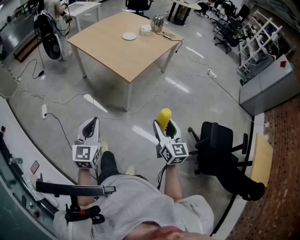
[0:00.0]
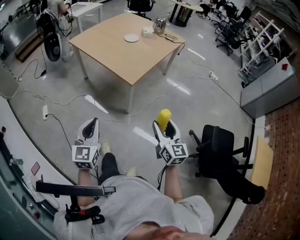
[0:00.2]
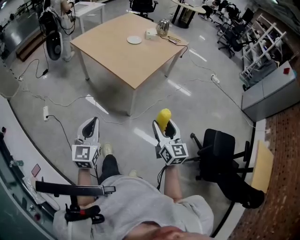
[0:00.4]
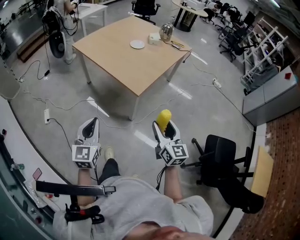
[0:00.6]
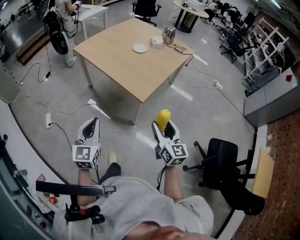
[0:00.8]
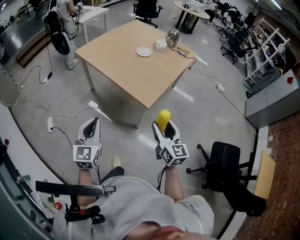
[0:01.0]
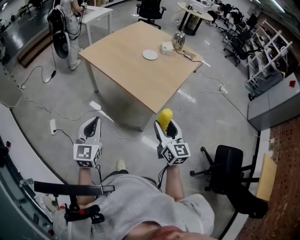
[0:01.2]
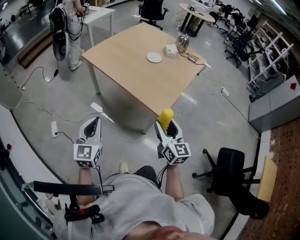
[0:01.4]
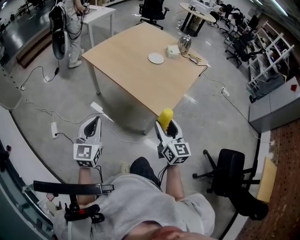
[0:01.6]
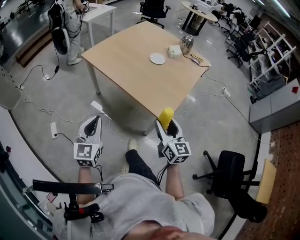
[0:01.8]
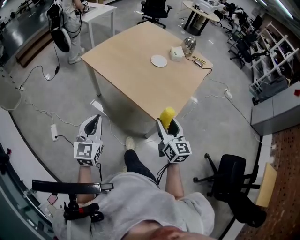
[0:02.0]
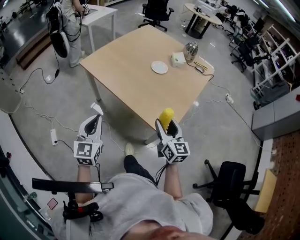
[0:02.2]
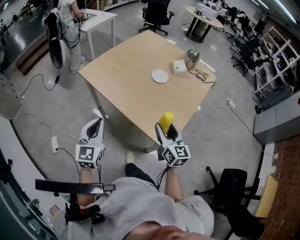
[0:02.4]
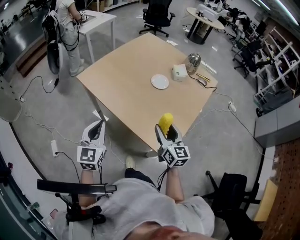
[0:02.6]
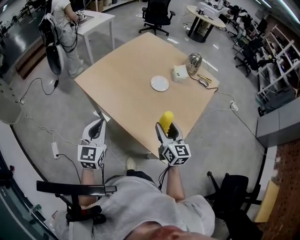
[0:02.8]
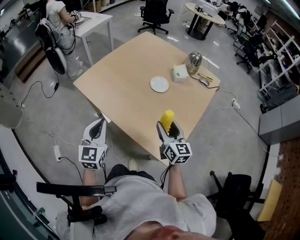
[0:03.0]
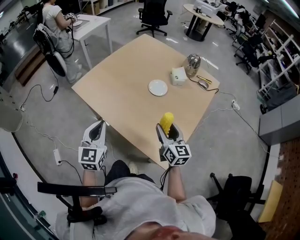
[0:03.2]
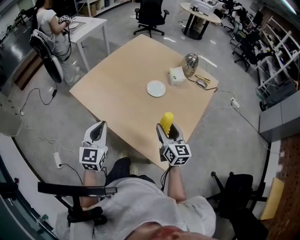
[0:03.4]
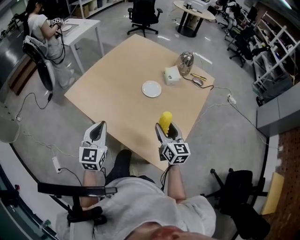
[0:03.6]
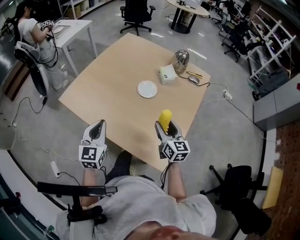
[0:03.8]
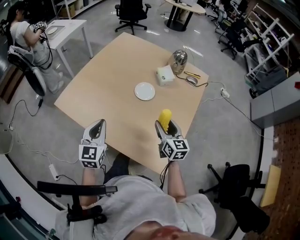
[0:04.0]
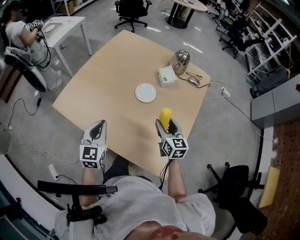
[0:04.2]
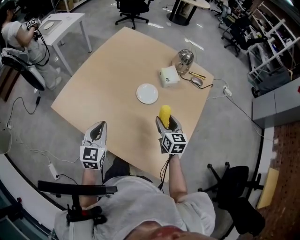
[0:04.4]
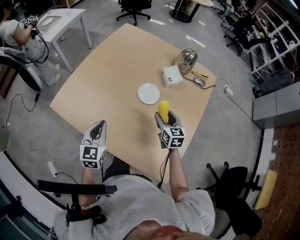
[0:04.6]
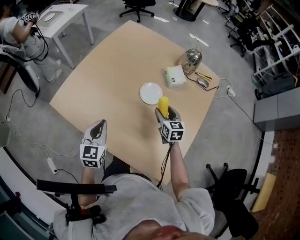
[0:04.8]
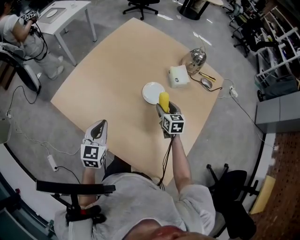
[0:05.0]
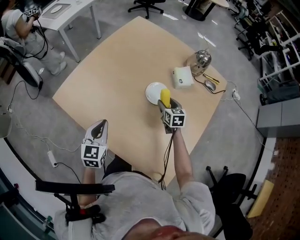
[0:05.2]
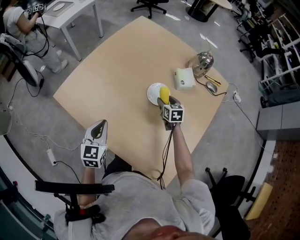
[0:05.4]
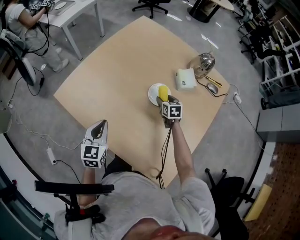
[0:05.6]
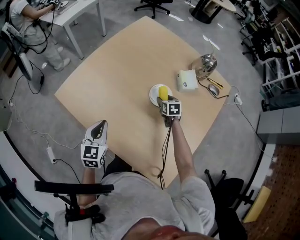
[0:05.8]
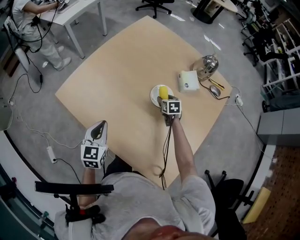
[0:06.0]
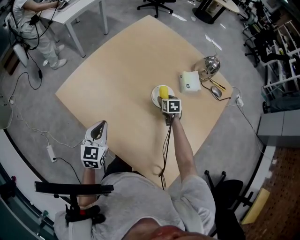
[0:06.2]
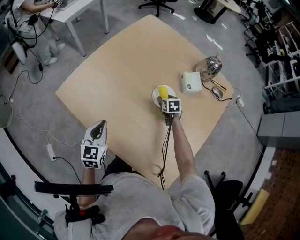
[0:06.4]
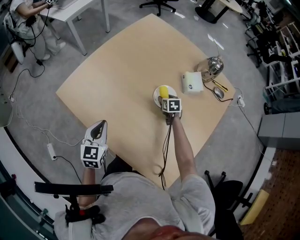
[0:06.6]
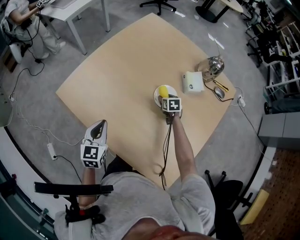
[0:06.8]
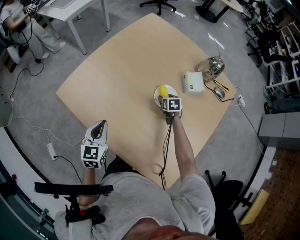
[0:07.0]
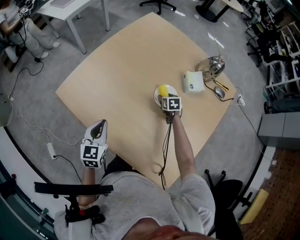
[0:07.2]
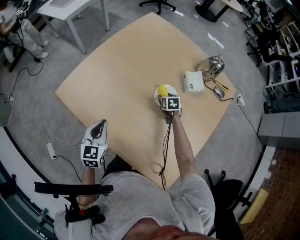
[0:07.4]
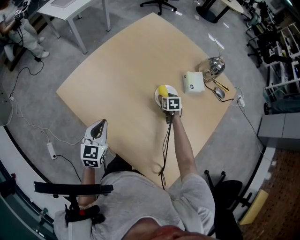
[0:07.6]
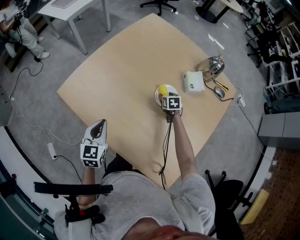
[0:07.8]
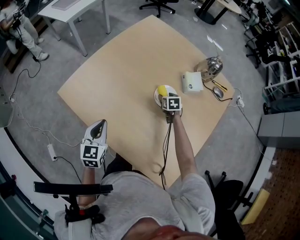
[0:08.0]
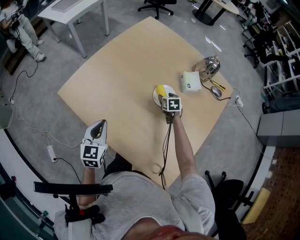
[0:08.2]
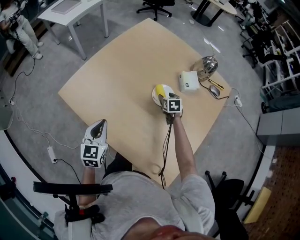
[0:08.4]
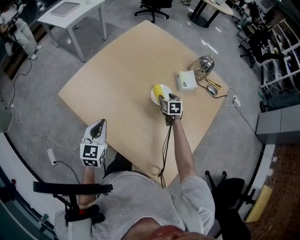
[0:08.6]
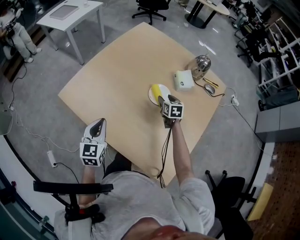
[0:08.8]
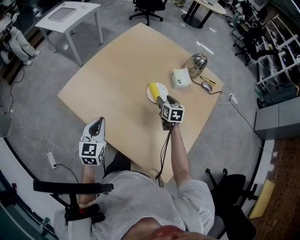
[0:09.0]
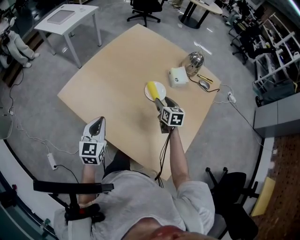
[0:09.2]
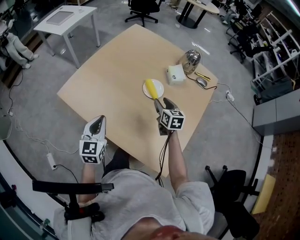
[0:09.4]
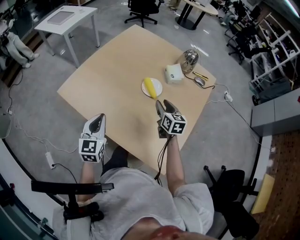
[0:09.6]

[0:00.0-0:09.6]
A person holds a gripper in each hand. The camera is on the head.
0:00.0 to 0:01.6: The grippers both shift forward and to the left by some 40 cm.
0:01.6 to 0:03.2: The grippers both shift forward by about 35 cm.
0:03.2 to 0:04.8: Both grippers move forward and downward, some 25 cm. The right gripper changes its angle by roughly 20 degrees.
0:04.8 to 0:06.4: The left gripper is displaced to the left by approximately 5 cm. Meanwhile the right gripper travels downward and forward by approximately 20 cm, and changes its angle by about 30 degrees.
0:06.4 to 0:08.0: Both grippers stay put.
0:08.0 to 0:09.6: The right gripper travels upward and backward by about 30 cm, and tilts its fingers roughly 30 degrees upward. The left gripper moves backward and upward, roughly 10 cm.

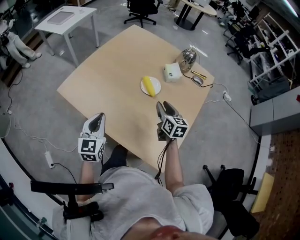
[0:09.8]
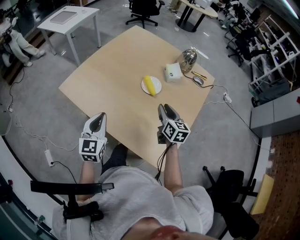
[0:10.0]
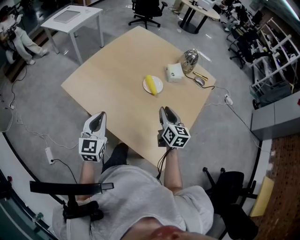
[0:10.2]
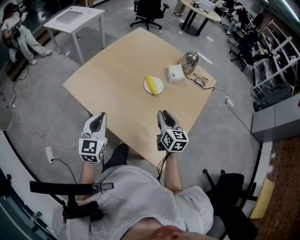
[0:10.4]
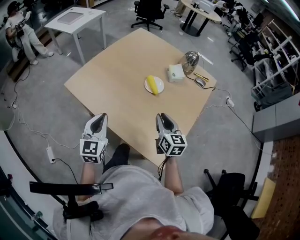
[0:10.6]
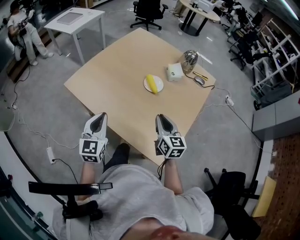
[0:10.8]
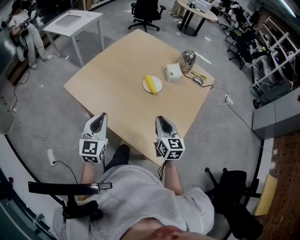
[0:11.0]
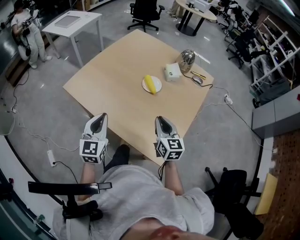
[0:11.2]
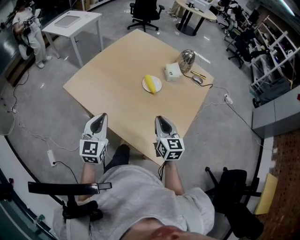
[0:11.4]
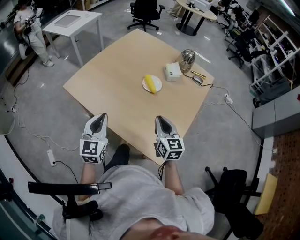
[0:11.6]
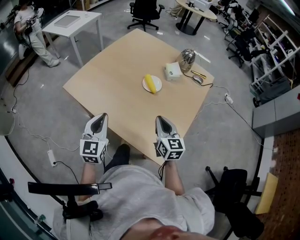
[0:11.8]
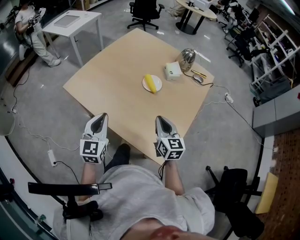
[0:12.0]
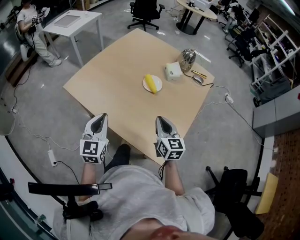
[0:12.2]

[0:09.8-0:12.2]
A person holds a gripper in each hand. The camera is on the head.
0:09.8 to 0:11.0: The right gripper heads backward, covering approximately 15 cm, and closes its fingers, while the left gripper travels backward by approximately 5 cm.
0:11.0 to 0:12.2: Both grippers stay about where they are.

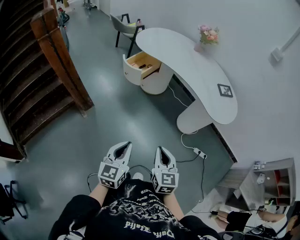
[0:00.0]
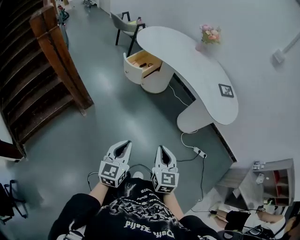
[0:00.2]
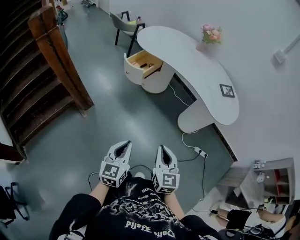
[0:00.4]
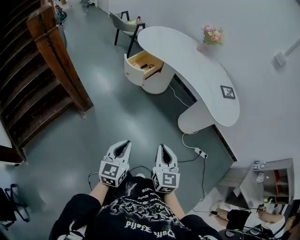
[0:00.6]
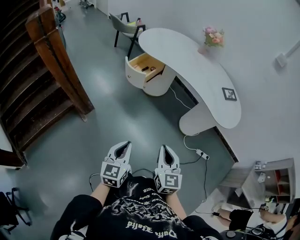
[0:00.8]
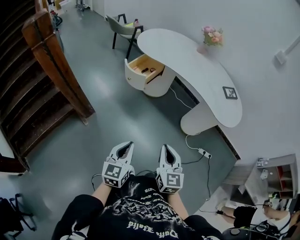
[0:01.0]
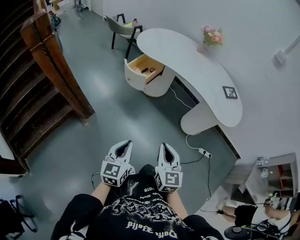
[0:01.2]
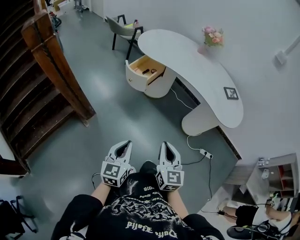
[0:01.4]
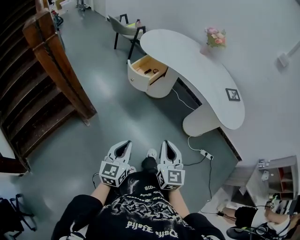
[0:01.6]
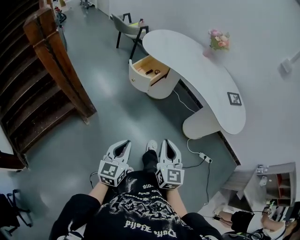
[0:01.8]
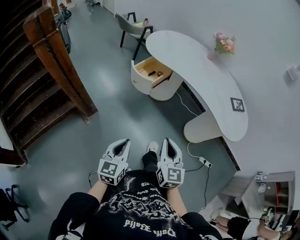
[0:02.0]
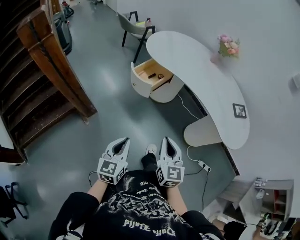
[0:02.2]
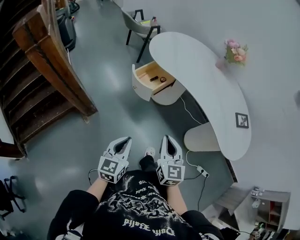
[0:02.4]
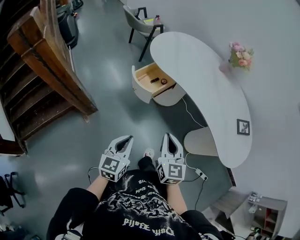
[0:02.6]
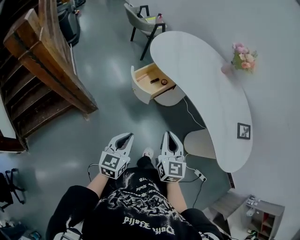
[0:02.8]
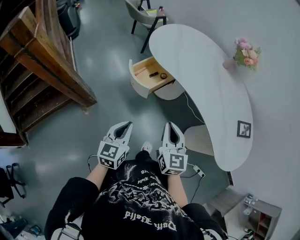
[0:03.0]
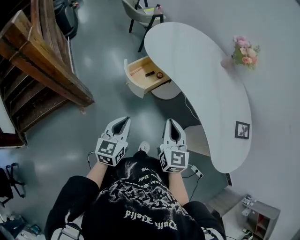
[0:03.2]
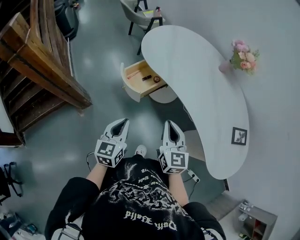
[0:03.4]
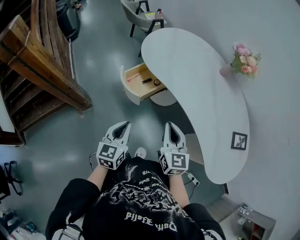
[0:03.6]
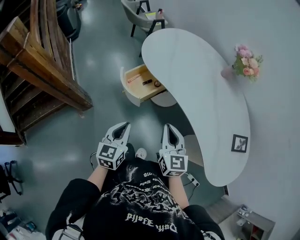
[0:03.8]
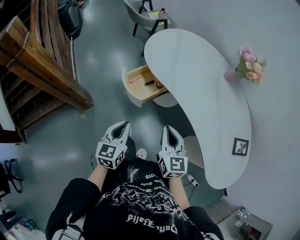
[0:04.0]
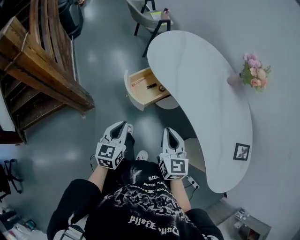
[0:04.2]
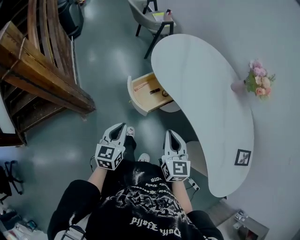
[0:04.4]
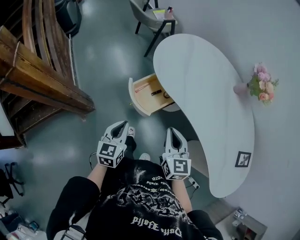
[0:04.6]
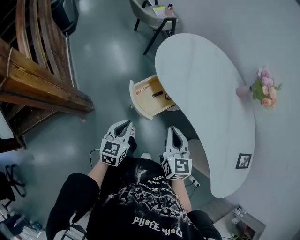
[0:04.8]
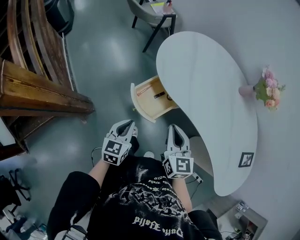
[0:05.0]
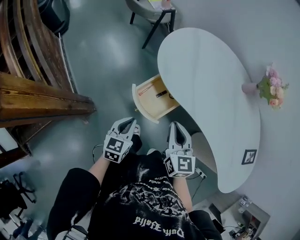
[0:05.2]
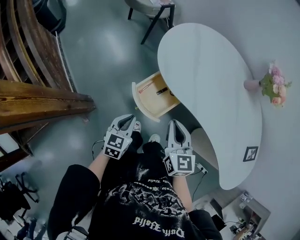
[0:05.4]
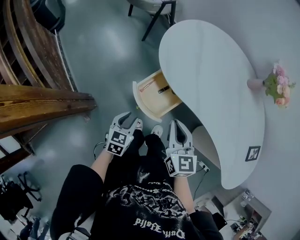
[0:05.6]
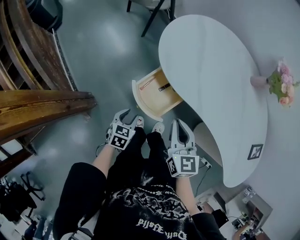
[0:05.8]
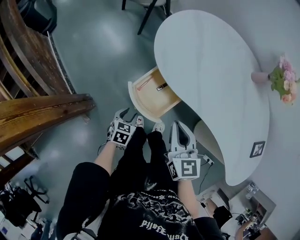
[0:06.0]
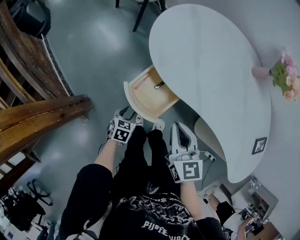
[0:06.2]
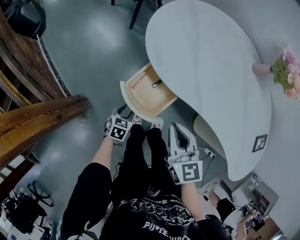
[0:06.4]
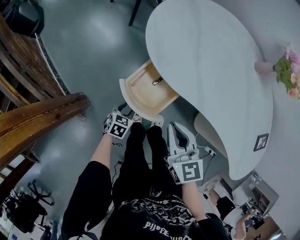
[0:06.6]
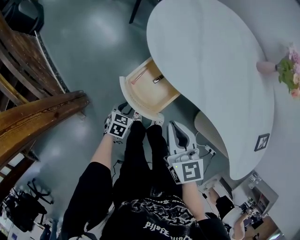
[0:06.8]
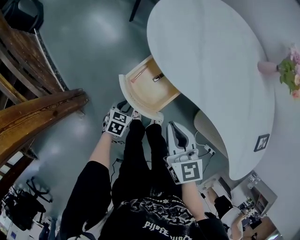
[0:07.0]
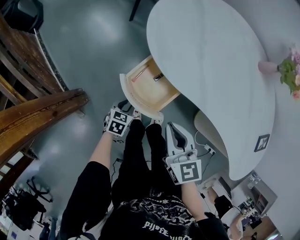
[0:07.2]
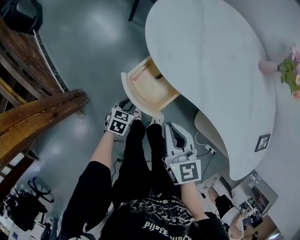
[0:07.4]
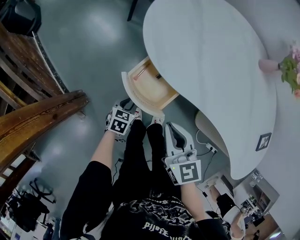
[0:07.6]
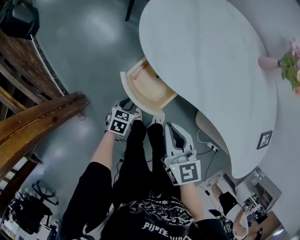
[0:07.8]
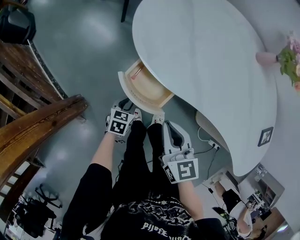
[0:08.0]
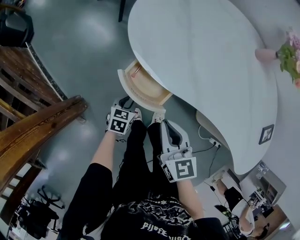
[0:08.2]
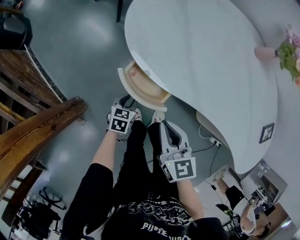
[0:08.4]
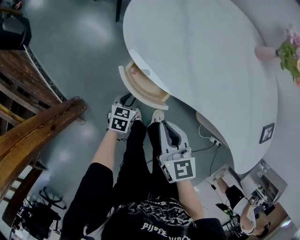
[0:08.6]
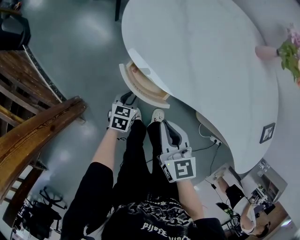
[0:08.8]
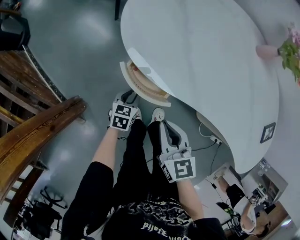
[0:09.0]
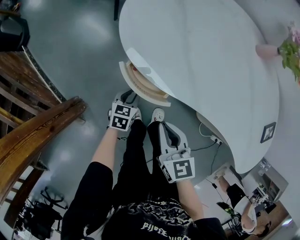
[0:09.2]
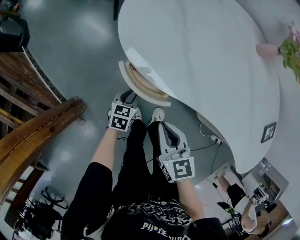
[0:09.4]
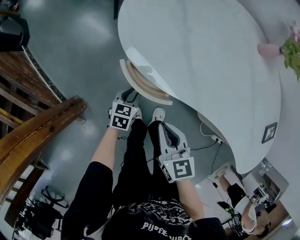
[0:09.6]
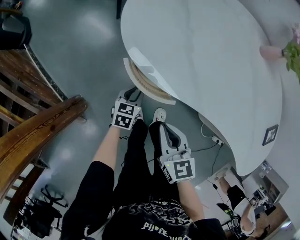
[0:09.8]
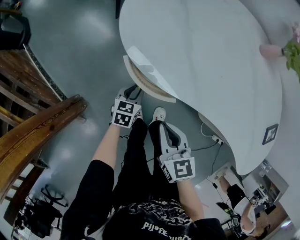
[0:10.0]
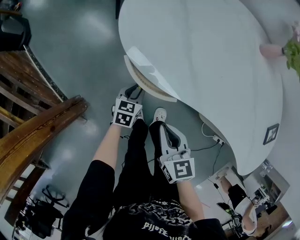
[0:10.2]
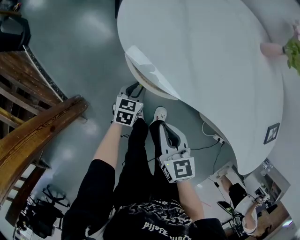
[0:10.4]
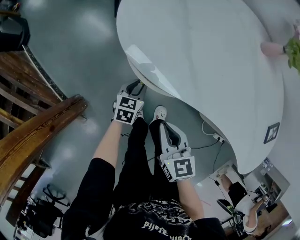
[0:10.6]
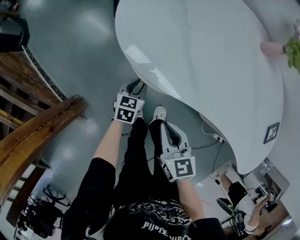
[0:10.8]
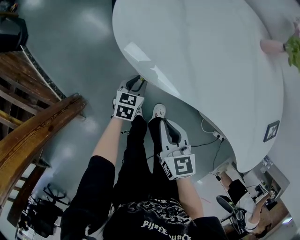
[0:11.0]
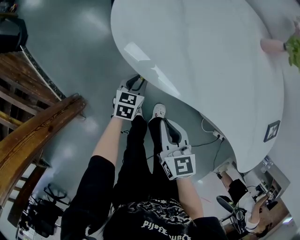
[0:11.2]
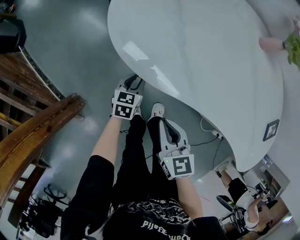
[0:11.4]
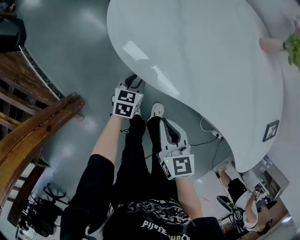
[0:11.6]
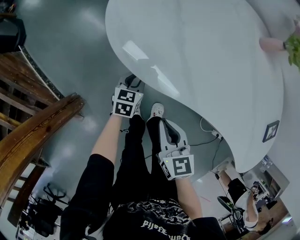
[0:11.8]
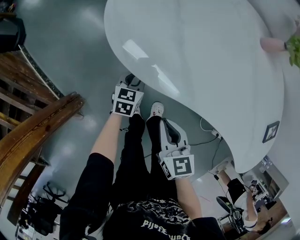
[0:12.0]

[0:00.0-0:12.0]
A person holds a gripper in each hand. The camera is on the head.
0:00.0 to 0:01.6: The two grippers go some 15 cm to the left and forward.
0:01.6 to 0:03.0: The grippers both shift forward by roughly 30 cm.
0:03.0 to 0:04.4: Both grippers move forward, some 15 cm.
0:04.4 to 0:06.0: The right gripper goes about 20 cm forward and to the left. The left gripper travels downward and forward by about 30 cm, swivels about 40 degrees, and opens.
0:06.0 to 0:07.6: The left gripper moves downward and forward, roughly 10 cm. Meanwhile the right gripper moves downward, roughly 5 cm.
0:07.6 to 0:09.0: The right gripper shifts by roughly 5 cm, while the left gripper shifts approximately 5 cm forward.
0:09.0 to 0:10.4: There are only small adjustments of the grippers.
0:10.4 to 0:12.0: The left gripper moves roughly 5 cm.
